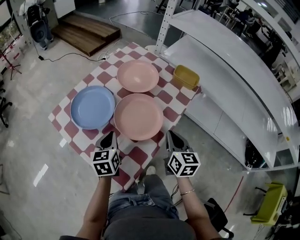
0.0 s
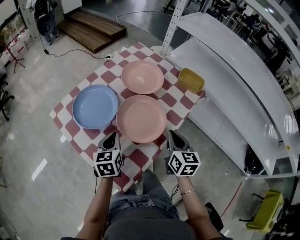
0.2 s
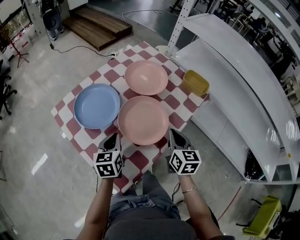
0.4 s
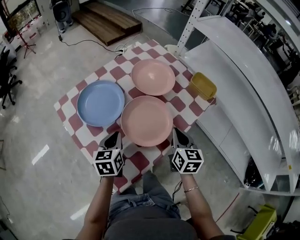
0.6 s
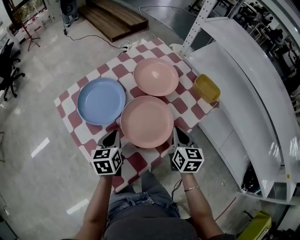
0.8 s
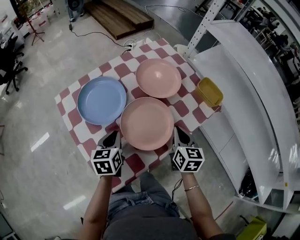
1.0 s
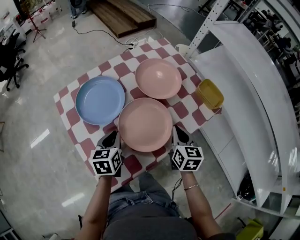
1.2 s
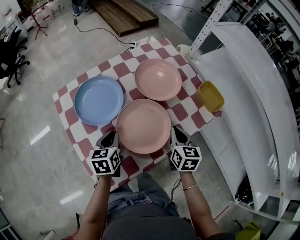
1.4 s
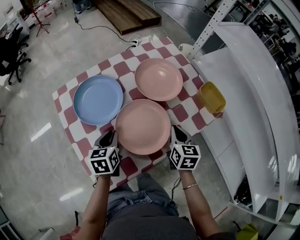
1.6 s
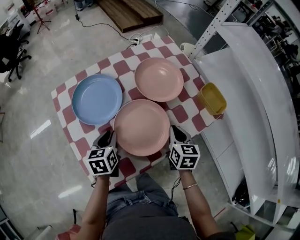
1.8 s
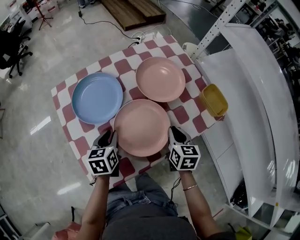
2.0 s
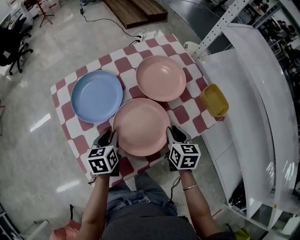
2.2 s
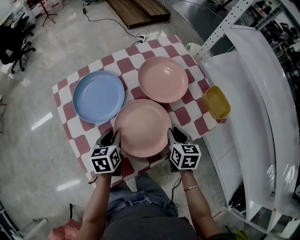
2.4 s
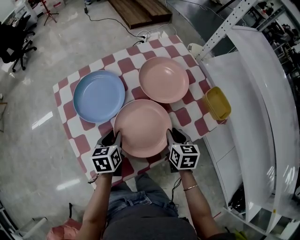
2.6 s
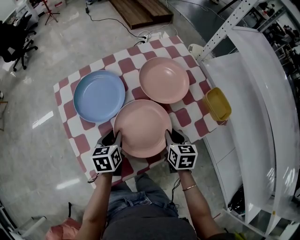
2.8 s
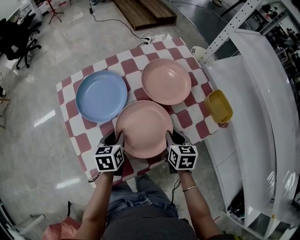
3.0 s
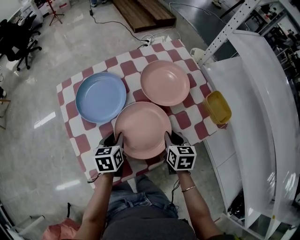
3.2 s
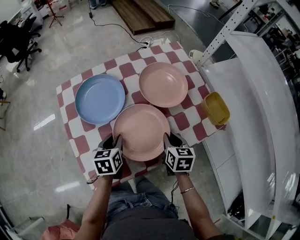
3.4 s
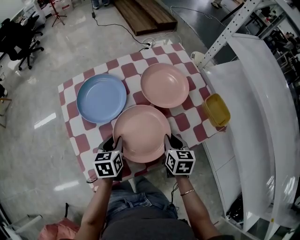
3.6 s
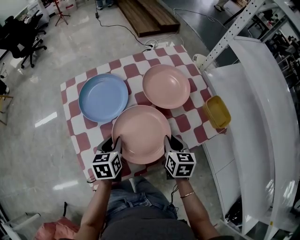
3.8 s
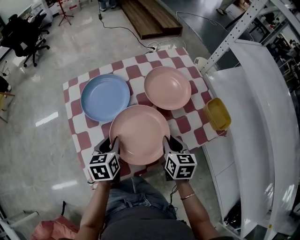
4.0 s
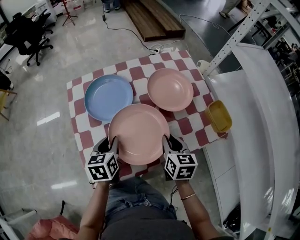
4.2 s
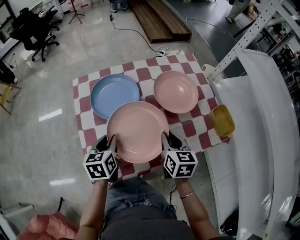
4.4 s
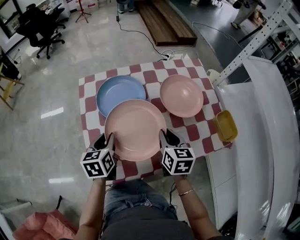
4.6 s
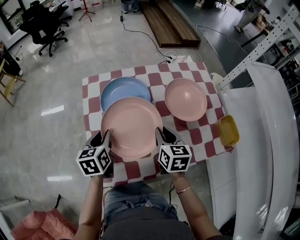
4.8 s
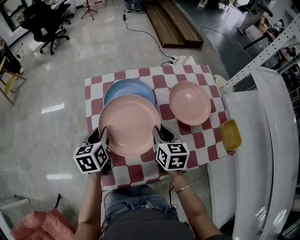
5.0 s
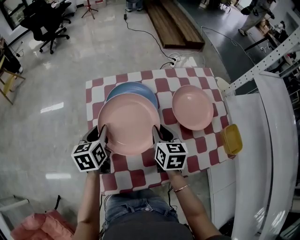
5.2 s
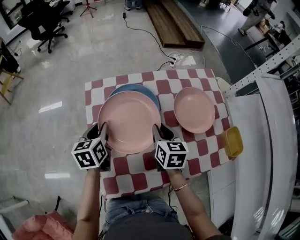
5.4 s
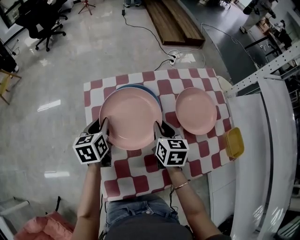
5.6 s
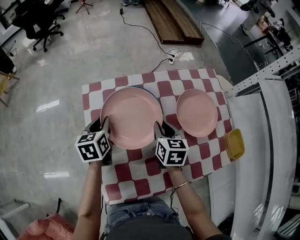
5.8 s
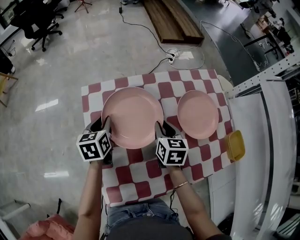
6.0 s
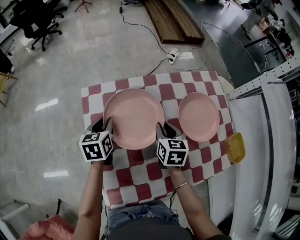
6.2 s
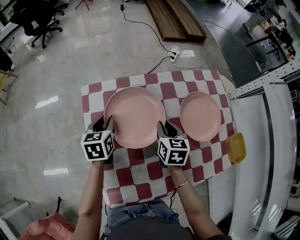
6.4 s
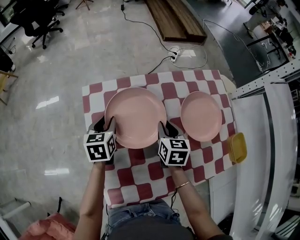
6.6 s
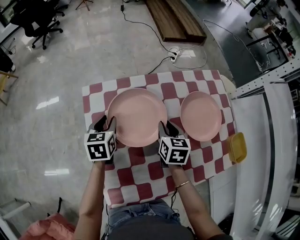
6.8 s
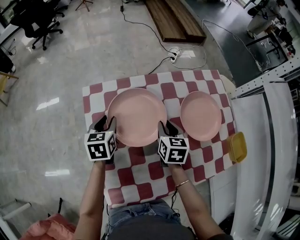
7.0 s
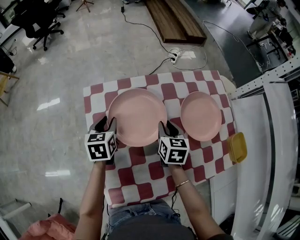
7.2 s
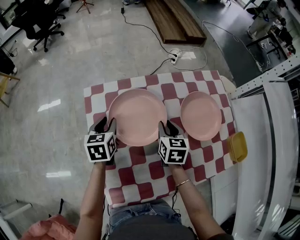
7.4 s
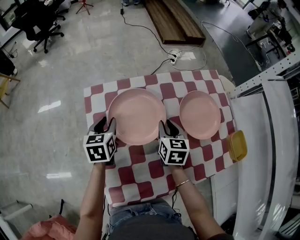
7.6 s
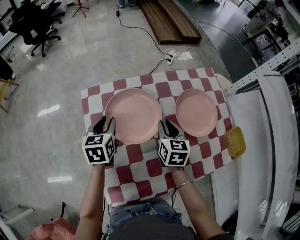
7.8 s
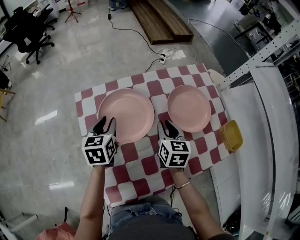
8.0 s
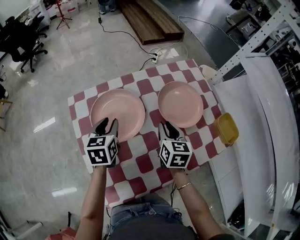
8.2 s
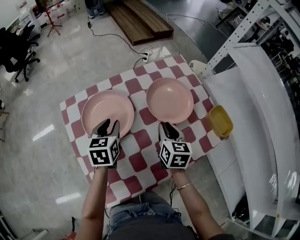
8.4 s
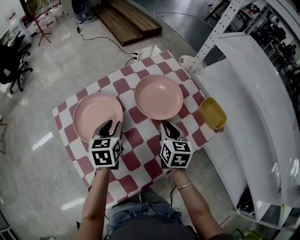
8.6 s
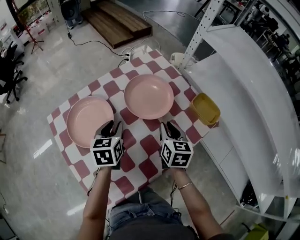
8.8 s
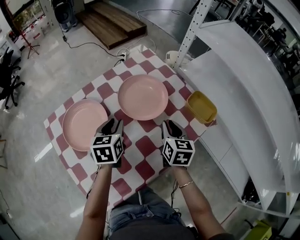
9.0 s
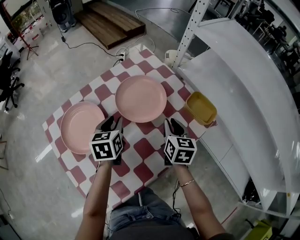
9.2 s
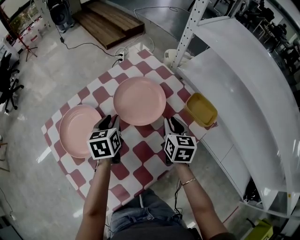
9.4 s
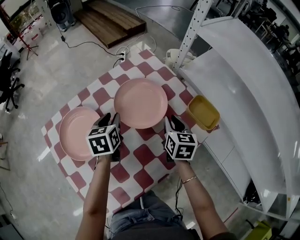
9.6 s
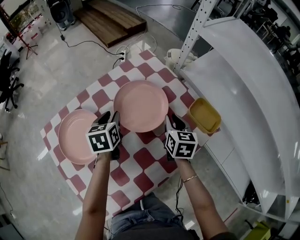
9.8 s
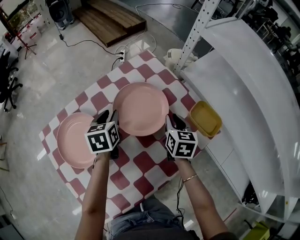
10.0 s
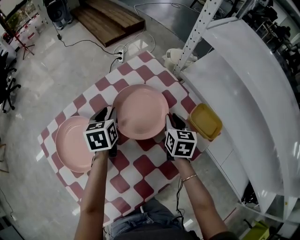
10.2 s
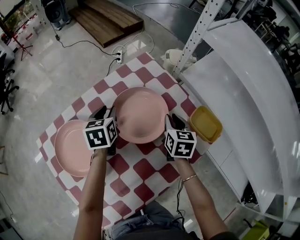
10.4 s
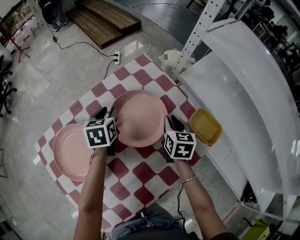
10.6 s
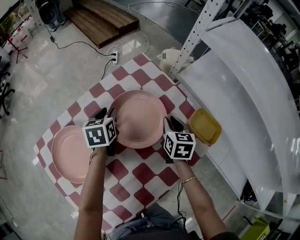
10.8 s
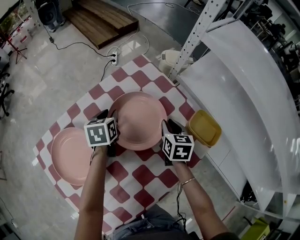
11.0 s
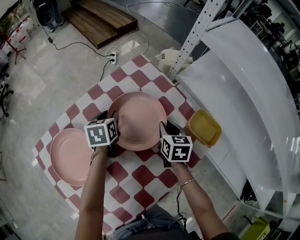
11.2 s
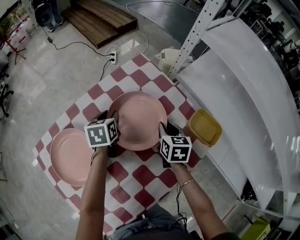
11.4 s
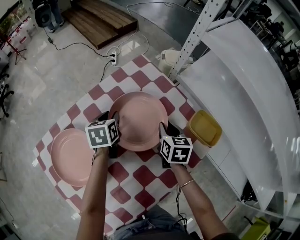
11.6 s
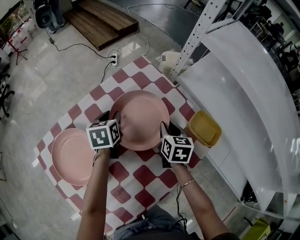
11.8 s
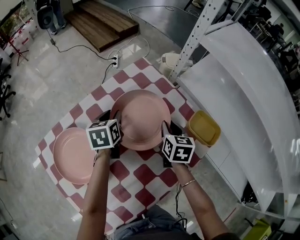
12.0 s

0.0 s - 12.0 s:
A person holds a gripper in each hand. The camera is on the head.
0.0 s - 1.6 s: The left gripper moves approximately 5 cm, and turns by about 20 degrees, while the right gripper shifts approximately 15 cm forward and downward, and swivels some 20 degrees.
1.6 s - 3.0 s: There are only small adjustments of the grippers.
3.0 s - 4.4 s: Both grippers travel together upward and to the left, about 10 cm.
4.4 s - 6.0 s: Both grippers travel together forward and to the left, about 20 cm.
6.0 s - 7.6 s: There are only small adjustments of the grippers.
7.6 s - 9.0 s: The left gripper shifts by about 30 cm, and turns by approximately 30 degrees. Meanwhile the right gripper moves approximately 30 cm, and swivels some 30 degrees.
9.0 s - 10.4 s: Both grippers travel together forward, roughly 15 cm.
10.4 s - 12.0 s: The grippers stay close to where they were, moving slightly.

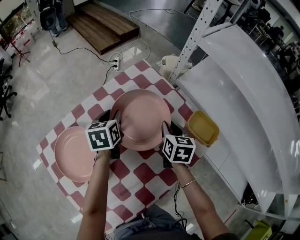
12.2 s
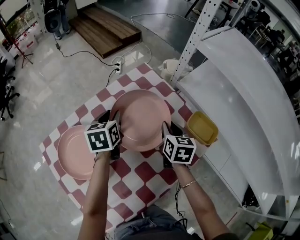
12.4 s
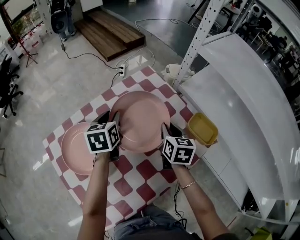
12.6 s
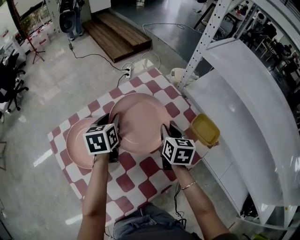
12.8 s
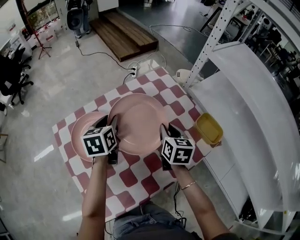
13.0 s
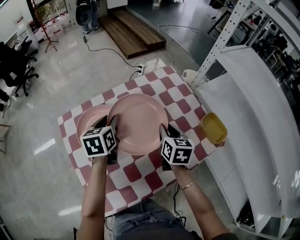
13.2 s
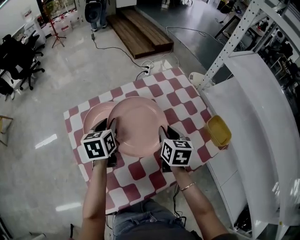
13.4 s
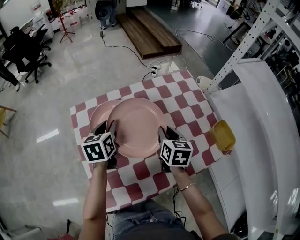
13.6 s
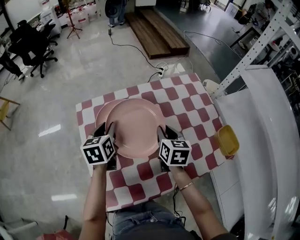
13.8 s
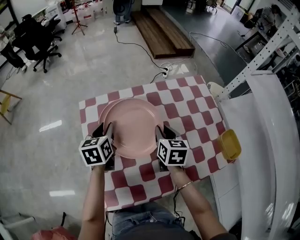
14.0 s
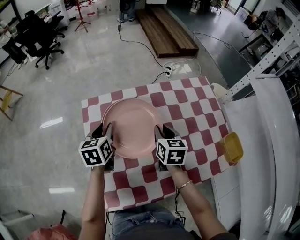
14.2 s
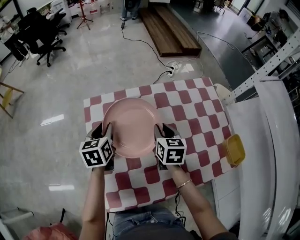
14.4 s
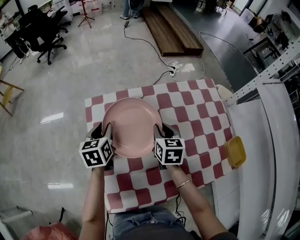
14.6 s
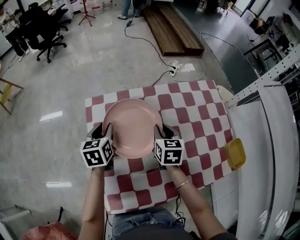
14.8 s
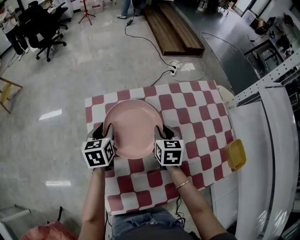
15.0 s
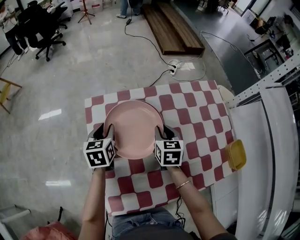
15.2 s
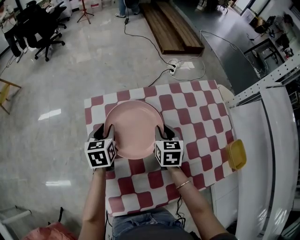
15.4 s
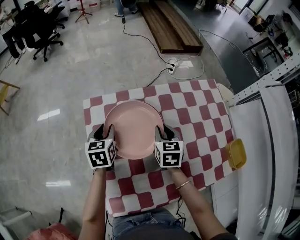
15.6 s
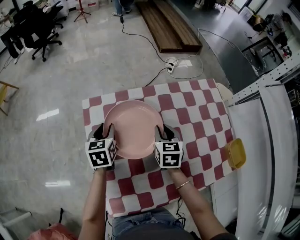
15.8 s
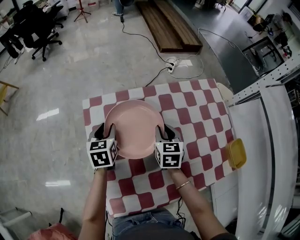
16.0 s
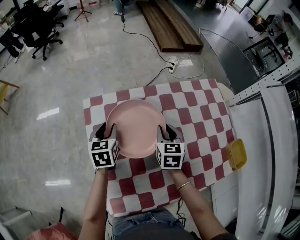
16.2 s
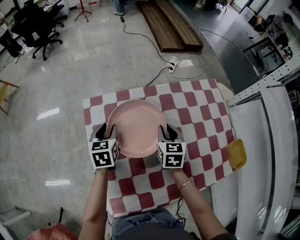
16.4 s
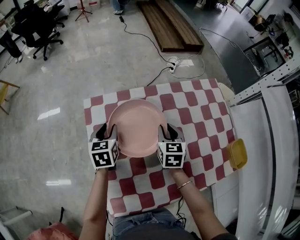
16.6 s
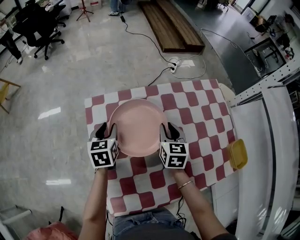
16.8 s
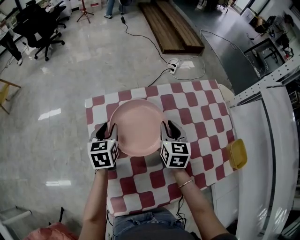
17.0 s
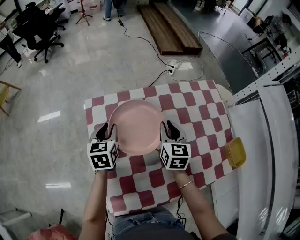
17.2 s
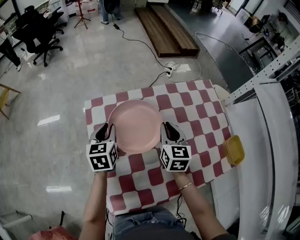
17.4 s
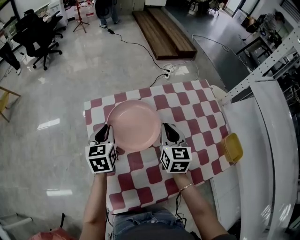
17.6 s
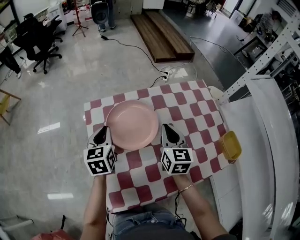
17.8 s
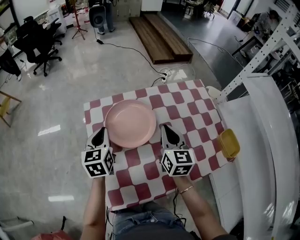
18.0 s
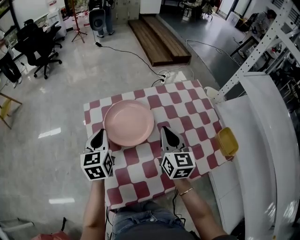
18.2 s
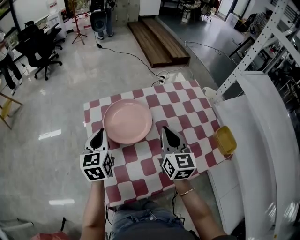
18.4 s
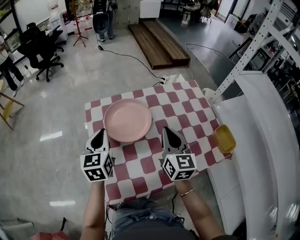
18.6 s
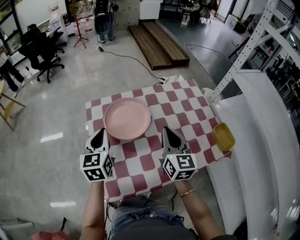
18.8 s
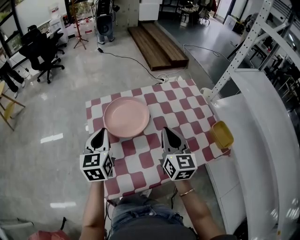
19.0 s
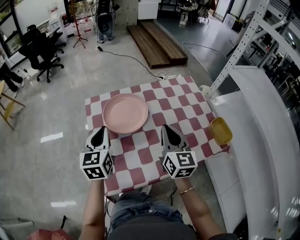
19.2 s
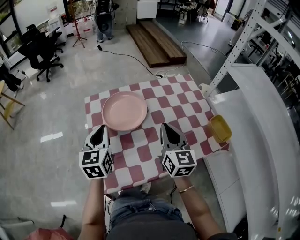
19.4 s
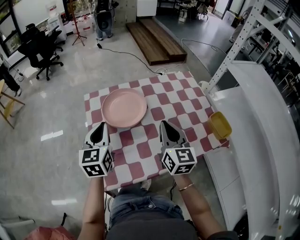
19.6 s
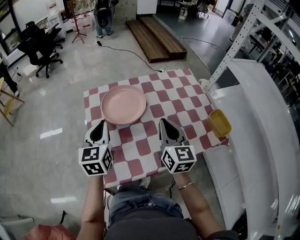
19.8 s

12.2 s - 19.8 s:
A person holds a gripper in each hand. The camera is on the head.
12.2 s - 13.8 s: The right gripper ends up roughly 25 cm from where it was, and turns by approximately 30 degrees. The left gripper changes place by roughly 30 cm, and turns by some 30 degrees.
13.8 s - 15.2 s: The left gripper goes roughly 10 cm to the left and downward. The right gripper heads to the left, forward and downward, covering some 10 cm.
15.2 s - 16.8 s: The grippers move only a little.
16.8 s - 18.2 s: Both grippers travel together upward and backward, about 15 cm. The right gripper swivels about 20 degrees, and closes up; the left gripper closes its fingers.
18.2 s - 19.8 s: The right gripper is displaced backward by about 10 cm; the left gripper travels backward and upward by roughly 10 cm.

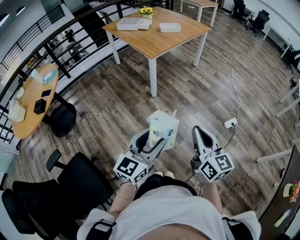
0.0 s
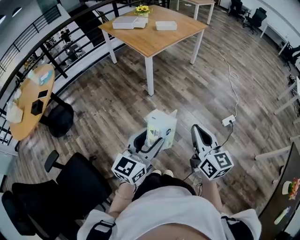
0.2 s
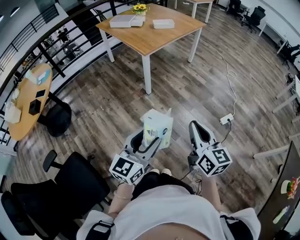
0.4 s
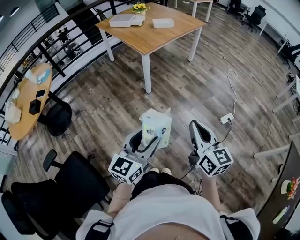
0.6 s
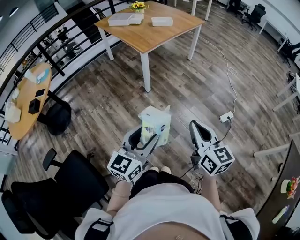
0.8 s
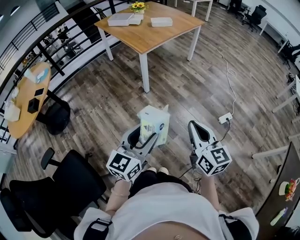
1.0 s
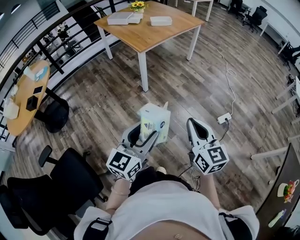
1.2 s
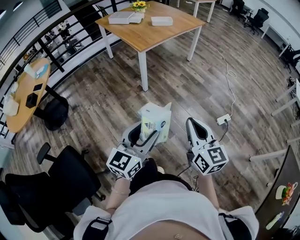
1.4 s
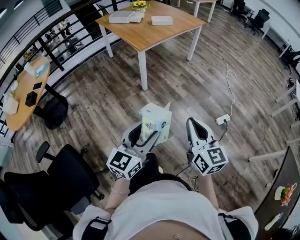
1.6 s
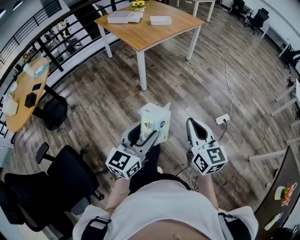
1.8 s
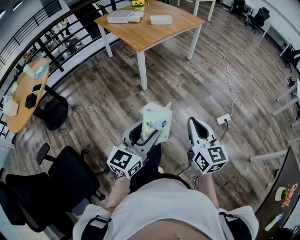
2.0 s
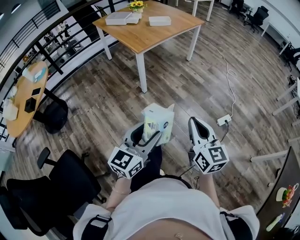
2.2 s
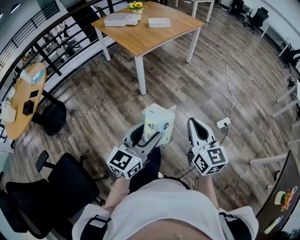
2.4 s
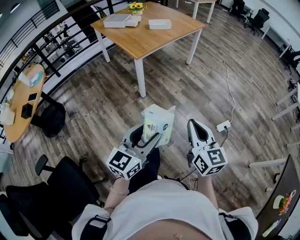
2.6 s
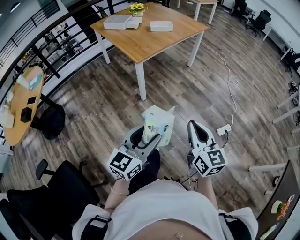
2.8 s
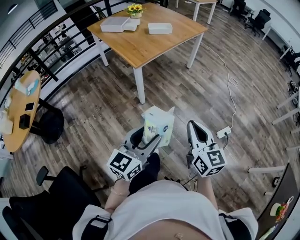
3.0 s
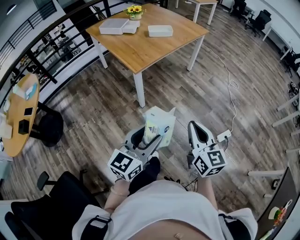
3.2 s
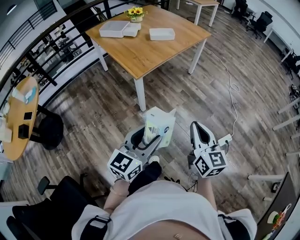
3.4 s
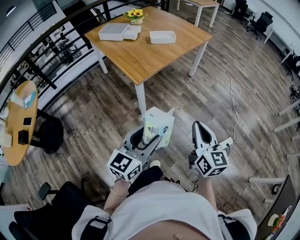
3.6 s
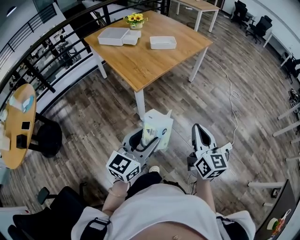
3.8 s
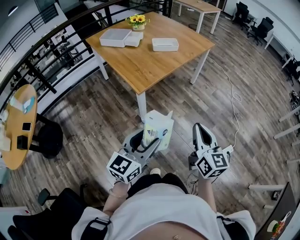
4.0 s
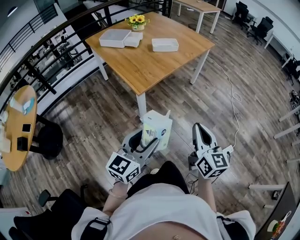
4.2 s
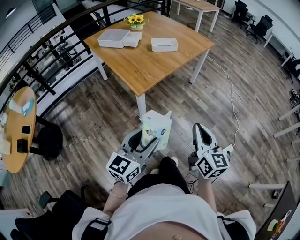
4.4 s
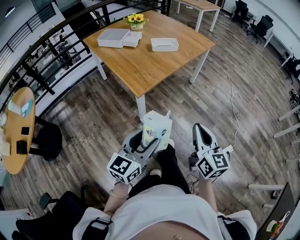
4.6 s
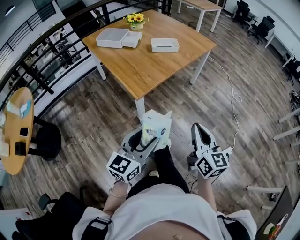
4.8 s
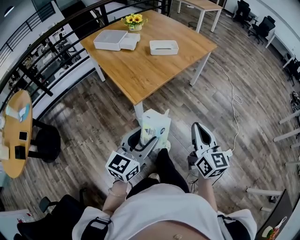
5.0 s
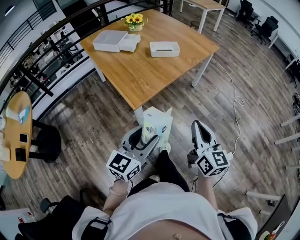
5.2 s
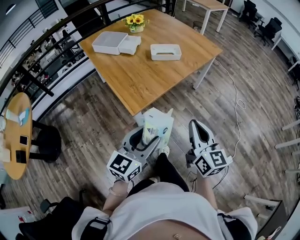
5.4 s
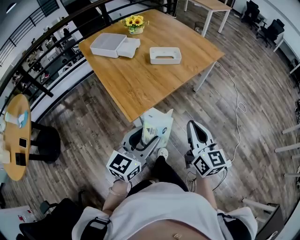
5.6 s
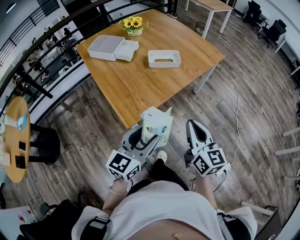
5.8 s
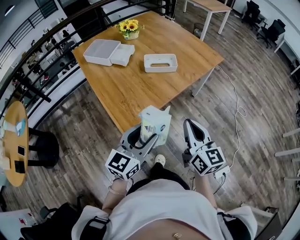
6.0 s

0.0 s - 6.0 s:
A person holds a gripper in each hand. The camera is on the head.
0.0 s - 1.6 s: Both grippers move to the right, some 5 cm.
1.6 s - 3.0 s: The grippers both shift forward by approximately 20 cm.
3.0 s - 4.4 s: The right gripper is displaced forward by roughly 20 cm; the left gripper travels forward and to the left by some 20 cm.
4.4 s - 6.0 s: Both grippers travel together forward, about 30 cm.
